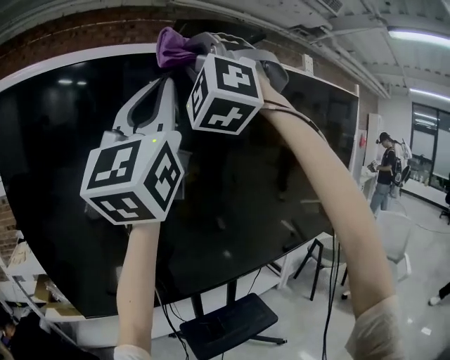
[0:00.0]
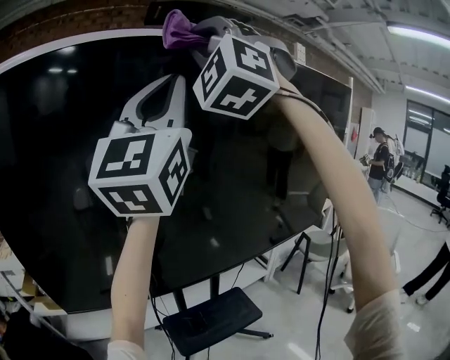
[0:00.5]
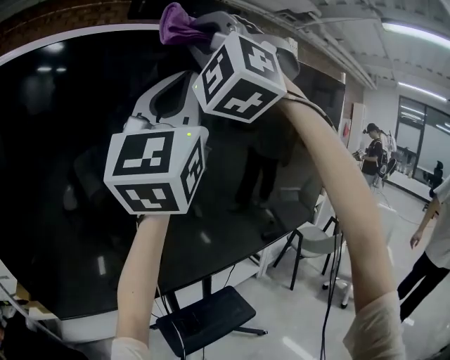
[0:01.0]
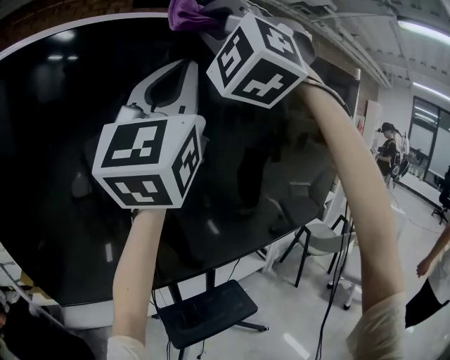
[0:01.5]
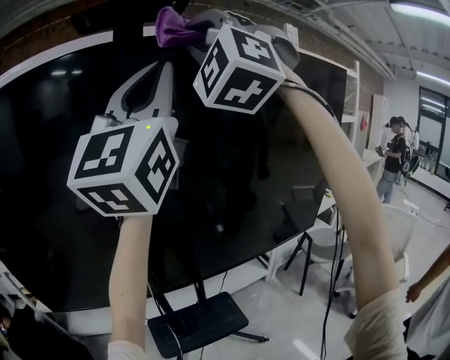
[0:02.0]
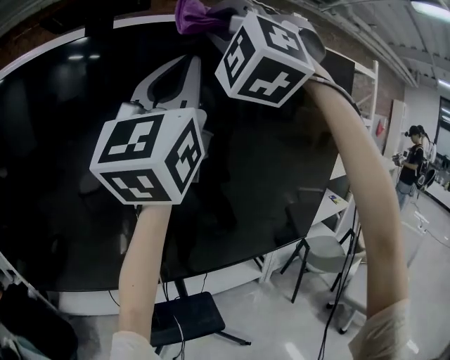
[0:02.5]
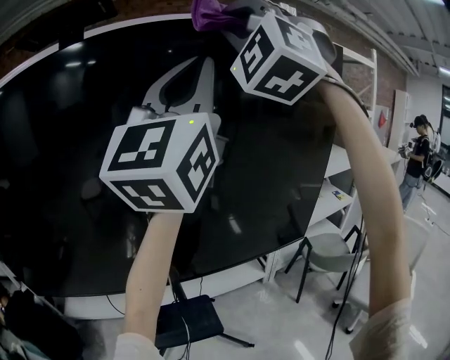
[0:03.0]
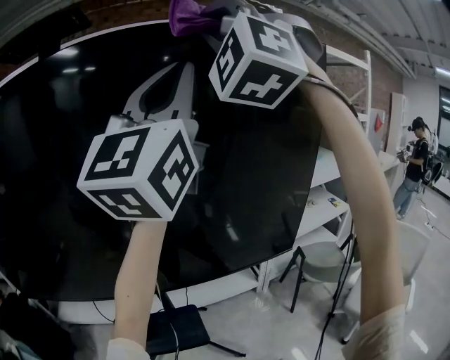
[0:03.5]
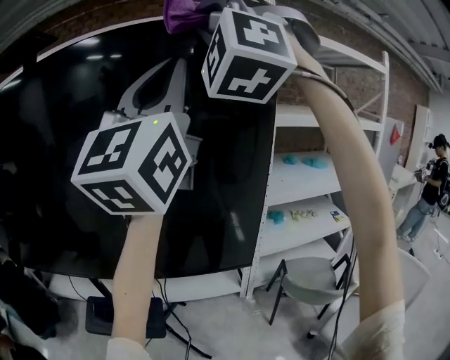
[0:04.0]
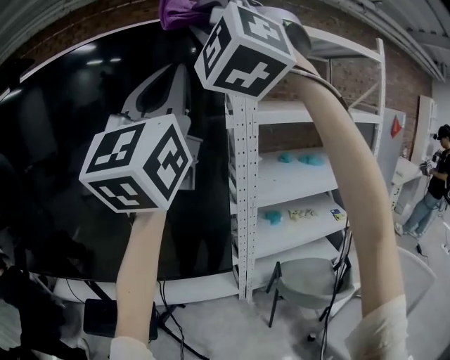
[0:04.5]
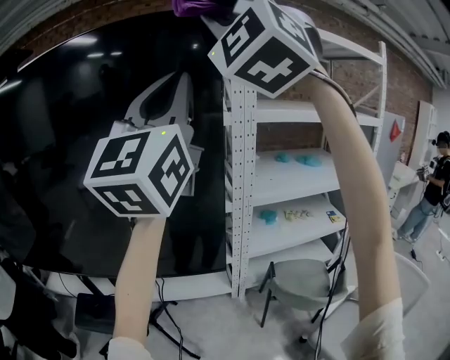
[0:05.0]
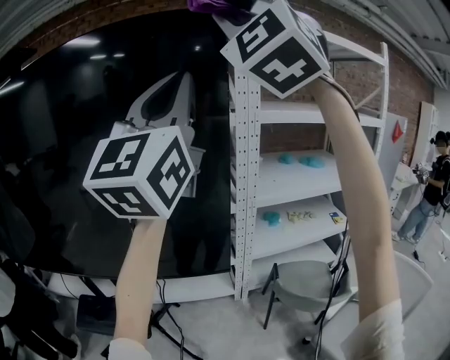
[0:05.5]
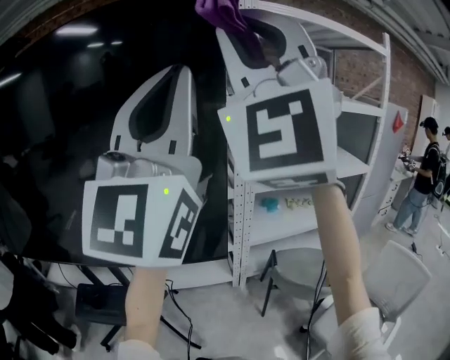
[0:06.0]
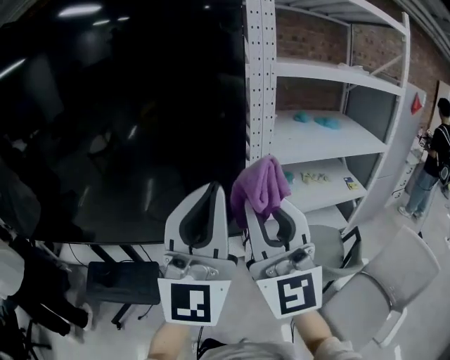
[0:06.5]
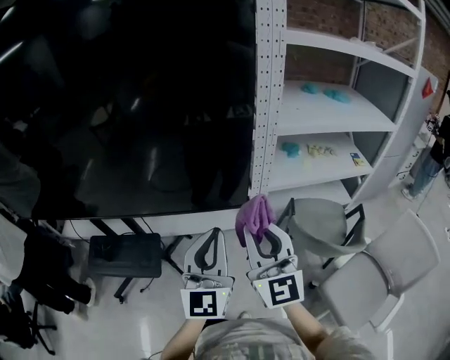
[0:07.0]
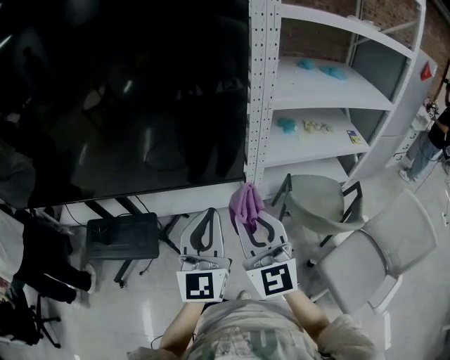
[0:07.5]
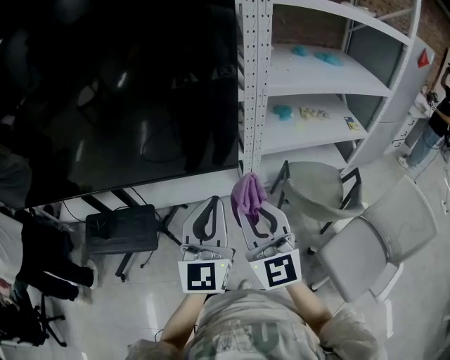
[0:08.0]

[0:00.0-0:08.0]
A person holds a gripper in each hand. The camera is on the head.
0:00.0 to 0:02.0: The grippers both shift to the right and forward by some 25 cm.
0:02.0 to 0:04.0: Both grippers are carried to the right, about 40 cm.
0:04.0 to 0:06.0: The right gripper travels to the right, downward and backward by roughly 15 cm, and turns by approximately 40 degrees; the left gripper shifts about 10 cm to the right and downward.
0:06.0 to 0:08.0: Both grippers travel together downward, some 50 cm. The left gripper tilts its fingers roughly 40 degrees downward. Meanwhile the right gripper rotates around the line of its fingers by about 50 degrees, clockwise from behind.

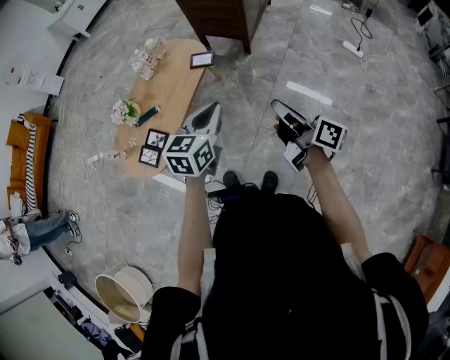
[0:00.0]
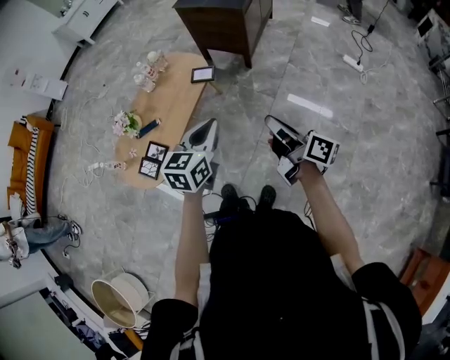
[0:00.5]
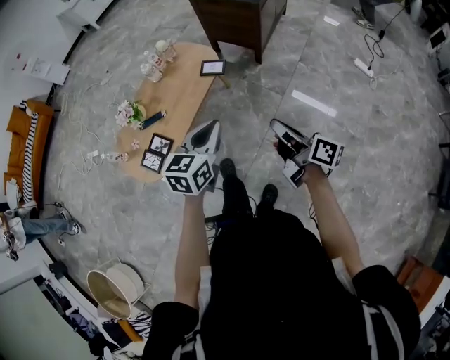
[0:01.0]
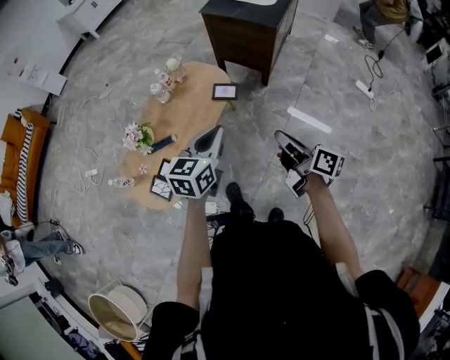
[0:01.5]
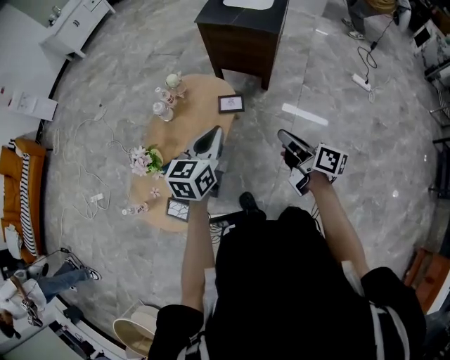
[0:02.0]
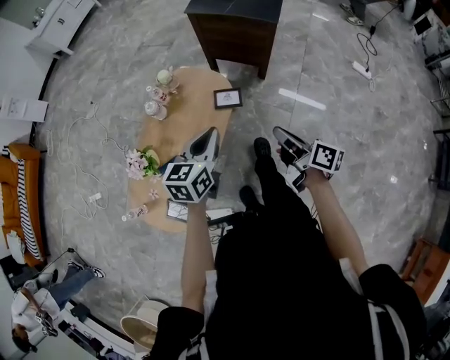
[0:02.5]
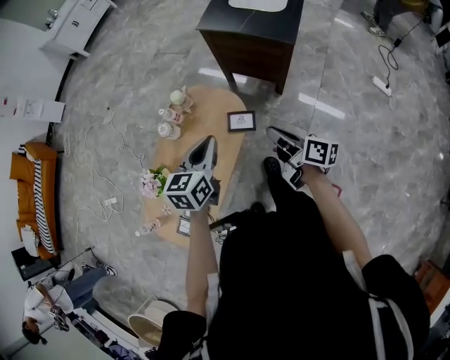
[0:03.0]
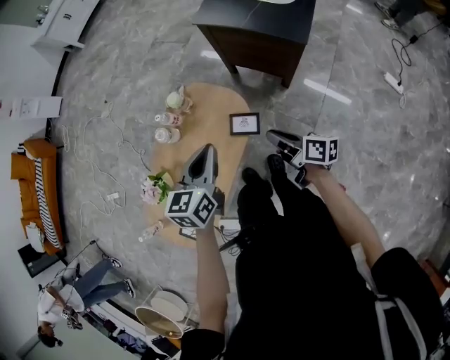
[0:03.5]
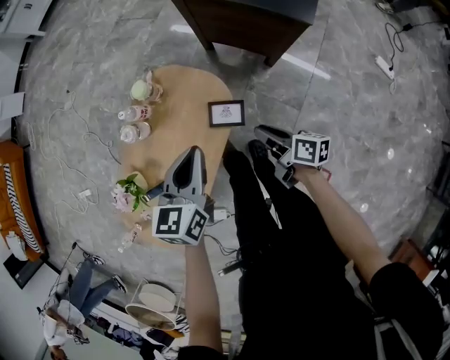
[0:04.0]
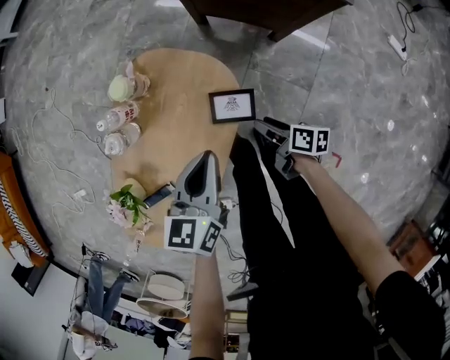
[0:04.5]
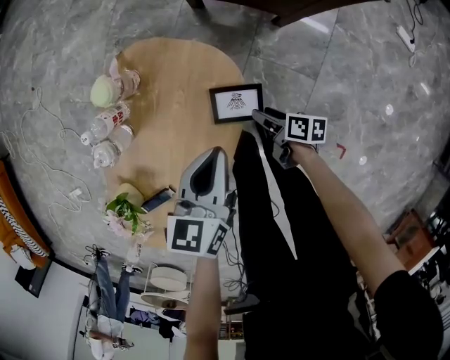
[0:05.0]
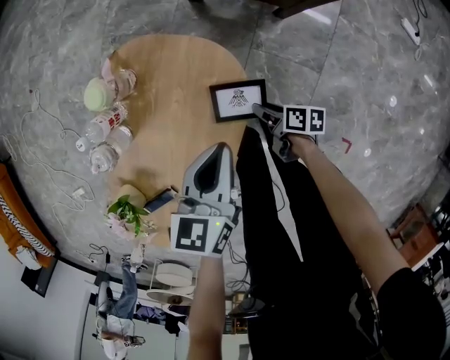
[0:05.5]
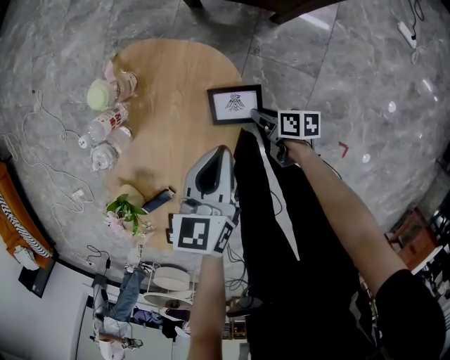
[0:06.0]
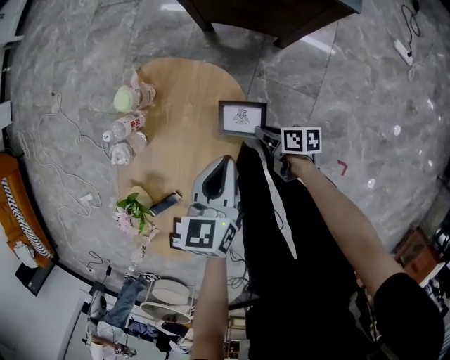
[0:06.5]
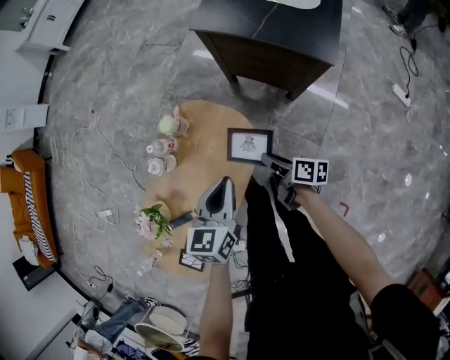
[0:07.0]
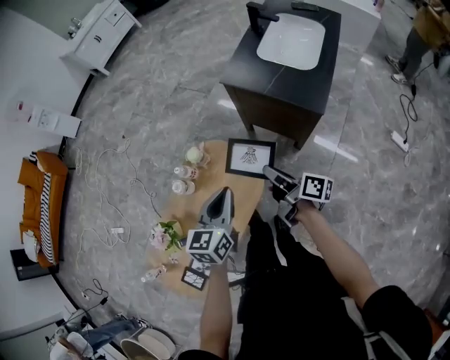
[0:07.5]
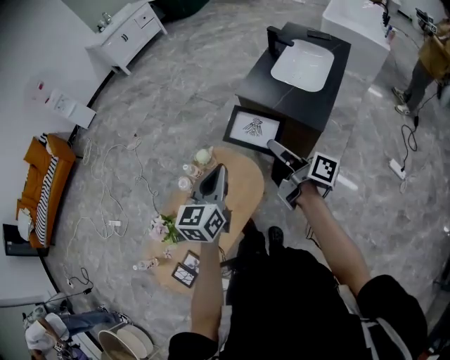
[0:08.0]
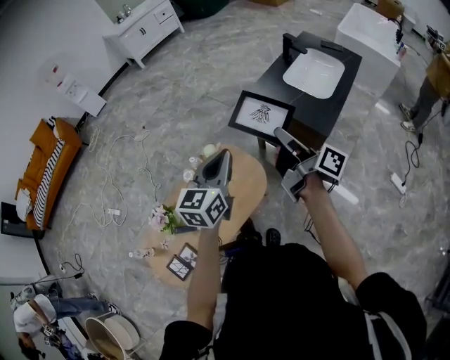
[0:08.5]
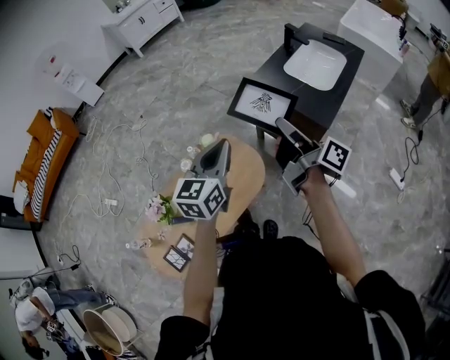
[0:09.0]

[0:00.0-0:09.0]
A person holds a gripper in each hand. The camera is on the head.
0:00.0 to 0:02.0: The left gripper changes place by some 30 cm.
0:02.0 to 0:04.5: The left gripper shifts by some 40 cm.
0:04.5 to 0:07.0: The left gripper moves upward, approximately 10 cm.
0:07.0 to 0:09.0: The left gripper moves upward, roughly 25 cm, and changes its angle by roughly 20 degrees.

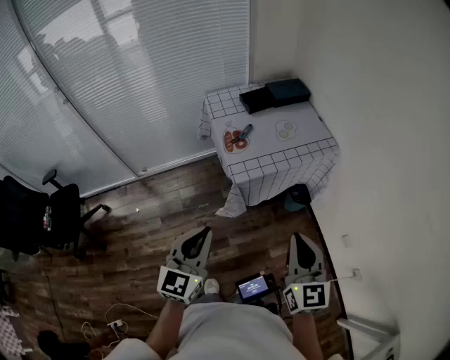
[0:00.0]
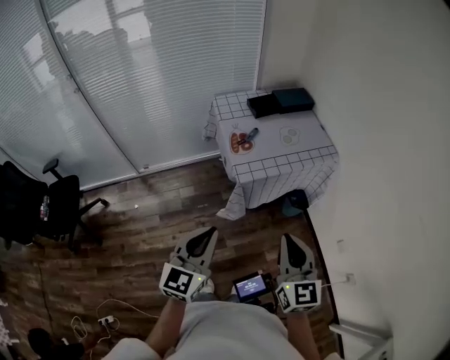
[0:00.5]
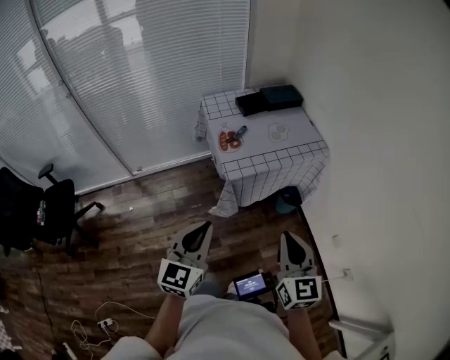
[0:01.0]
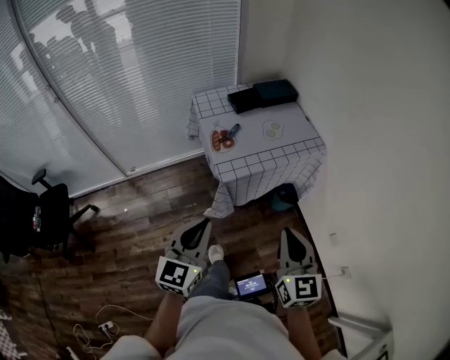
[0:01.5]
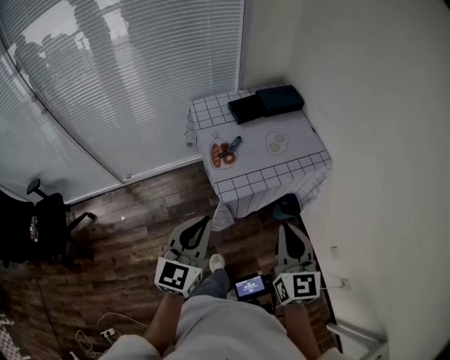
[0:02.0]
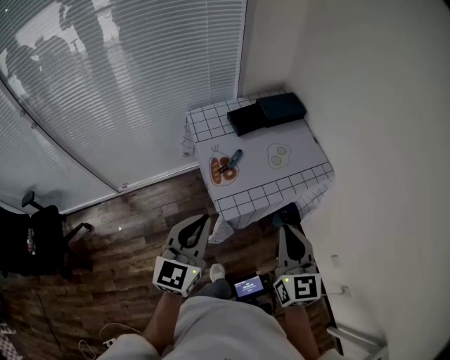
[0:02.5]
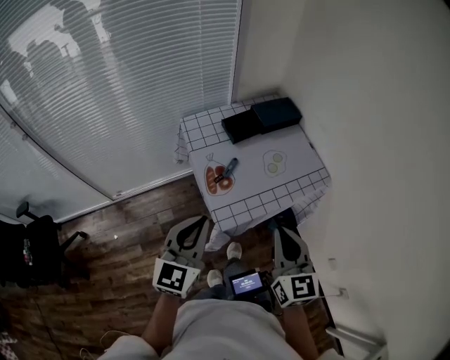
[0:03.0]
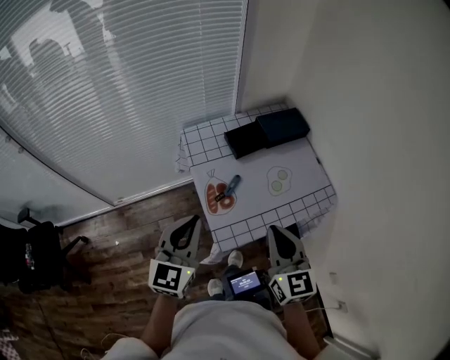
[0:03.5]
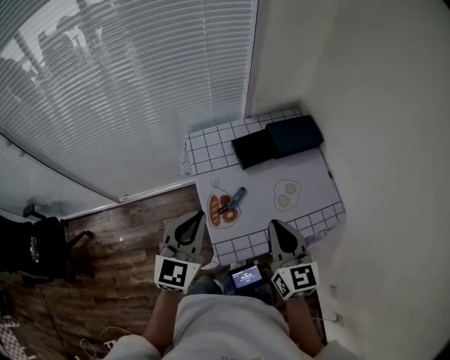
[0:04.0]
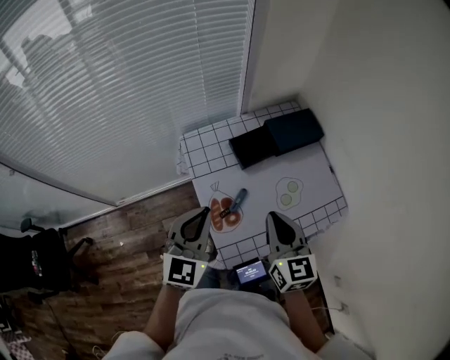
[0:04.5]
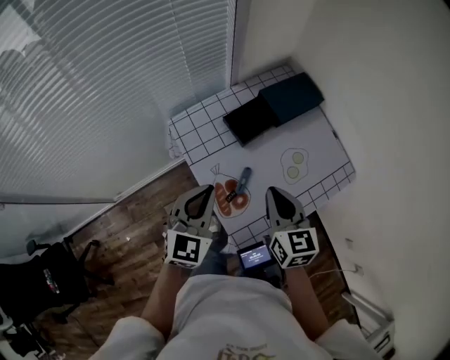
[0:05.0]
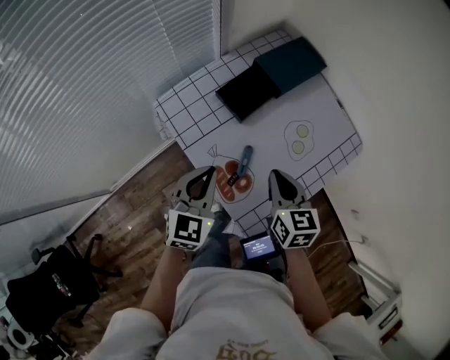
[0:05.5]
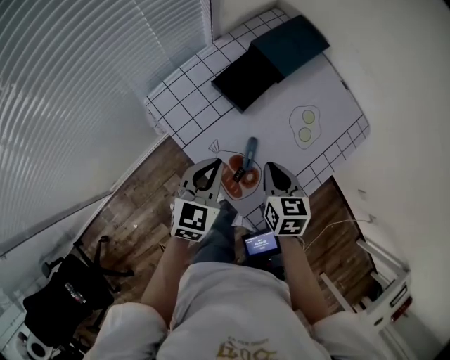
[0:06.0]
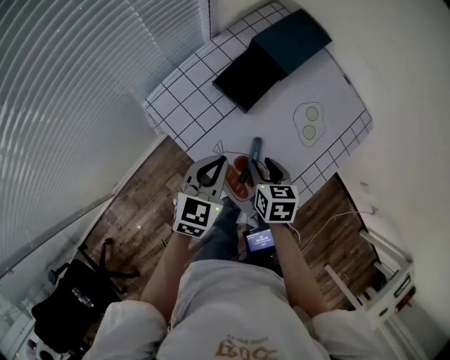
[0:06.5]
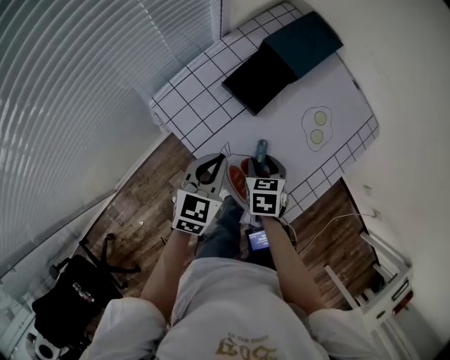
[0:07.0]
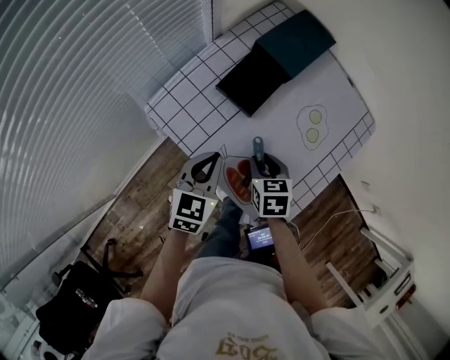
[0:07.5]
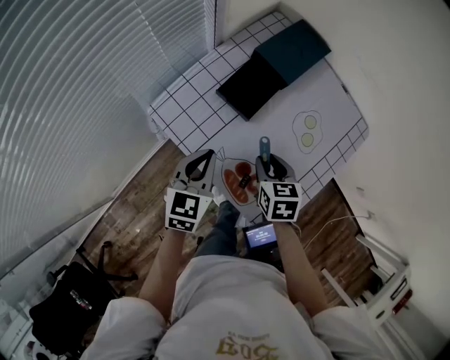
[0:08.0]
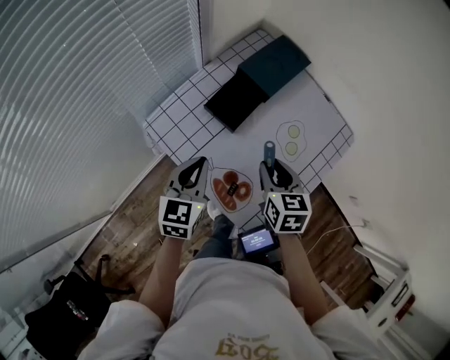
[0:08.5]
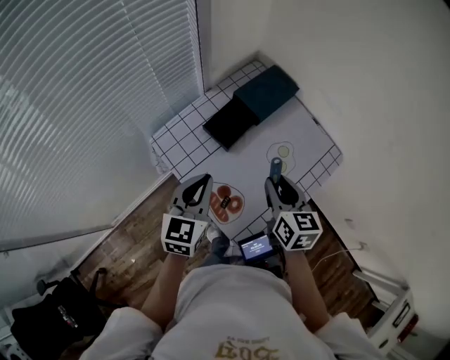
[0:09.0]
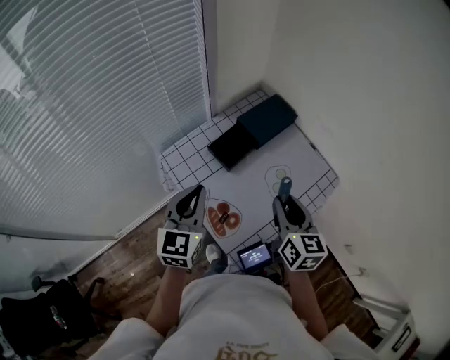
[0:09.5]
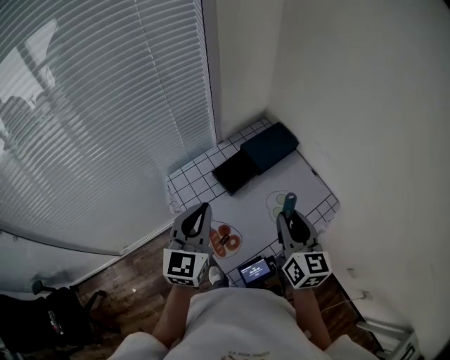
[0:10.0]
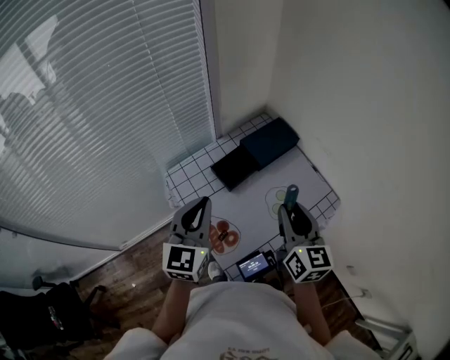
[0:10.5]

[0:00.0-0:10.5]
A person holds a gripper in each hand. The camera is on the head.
0:00.0 to 0:02.0: The grippers both shift forward by approximately 10 cm.
0:02.0 to 0:04.0: Both grippers move forward, about 30 cm.
0:04.0 to 0:06.5: Both grippers travel together downward, roughly 25 cm. The right gripper angles its fingers downward, by about 40 degrees, and opens up. Meanwhile the left gripper changes its angle by about 40 degrees.
0:06.5 to 0:08.5: The left gripper moves upward, about 5 cm; the right gripper goes approximately 10 cm upward.
0:08.5 to 0:10.5: The left gripper travels upward by some 20 cm, and turns by about 30 degrees, while the right gripper is displaced upward and to the right by some 20 cm, and points its fingers roughly 30 degrees further upward.
